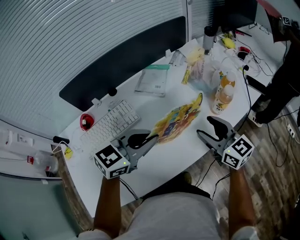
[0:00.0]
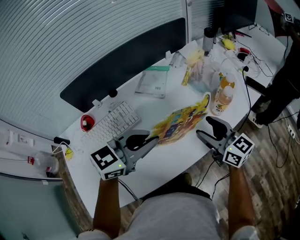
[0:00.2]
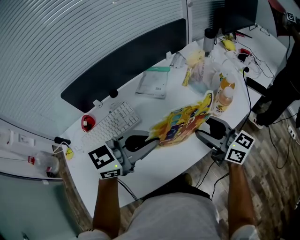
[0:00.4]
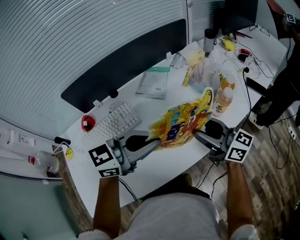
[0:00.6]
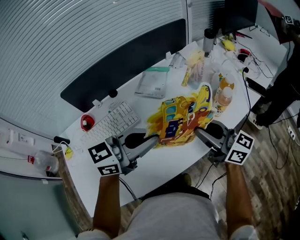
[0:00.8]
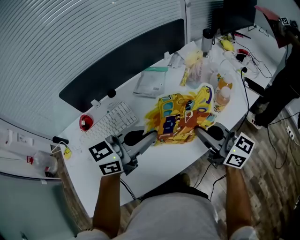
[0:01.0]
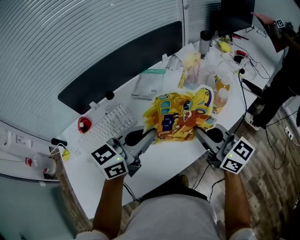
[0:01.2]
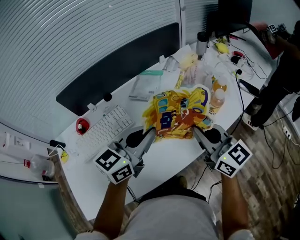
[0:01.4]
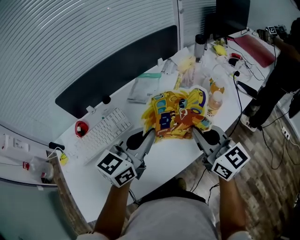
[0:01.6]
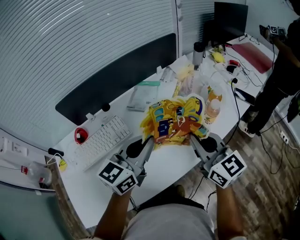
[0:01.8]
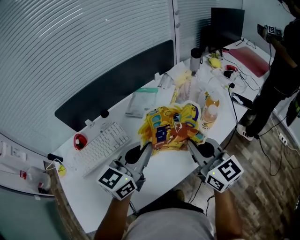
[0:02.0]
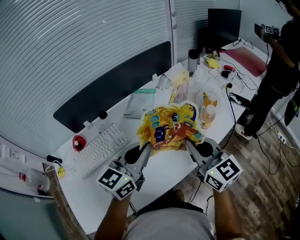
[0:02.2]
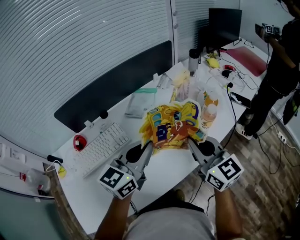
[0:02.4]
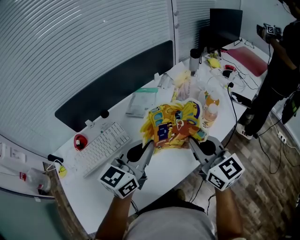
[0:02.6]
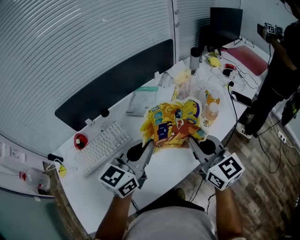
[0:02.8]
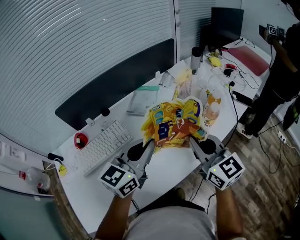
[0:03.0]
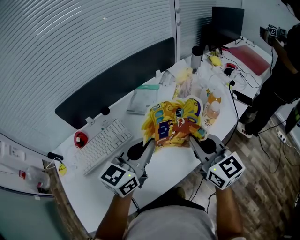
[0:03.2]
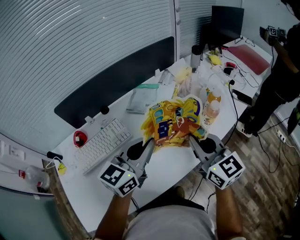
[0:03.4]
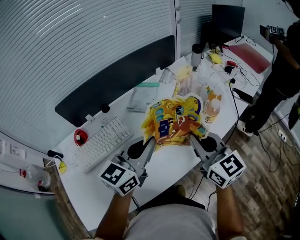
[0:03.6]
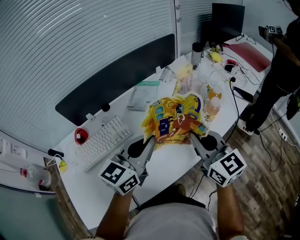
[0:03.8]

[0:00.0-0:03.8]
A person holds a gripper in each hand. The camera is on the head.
0:00.0 to 0:01.2: The right gripper shifts approximately 5 cm upward, and closes.
0:01.2 to 0:02.6: There are only small adjustments of the grippers.
0:02.6 to 0:03.8: Both grippers stay put.

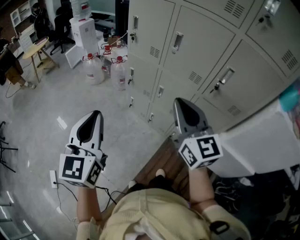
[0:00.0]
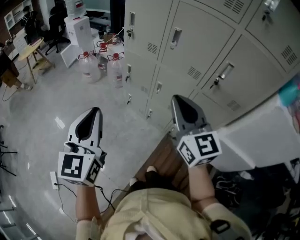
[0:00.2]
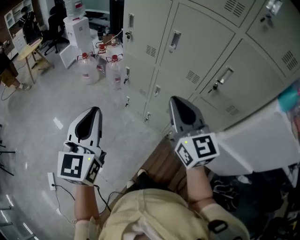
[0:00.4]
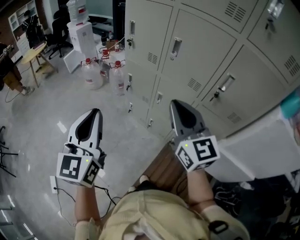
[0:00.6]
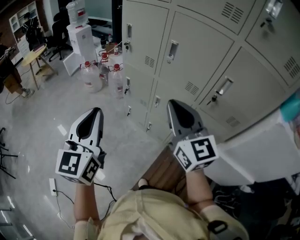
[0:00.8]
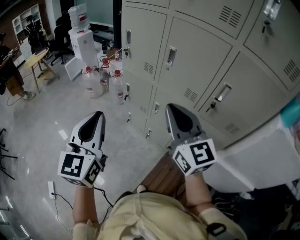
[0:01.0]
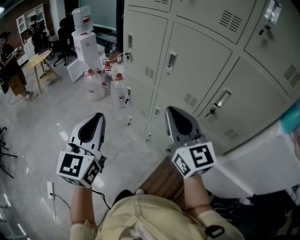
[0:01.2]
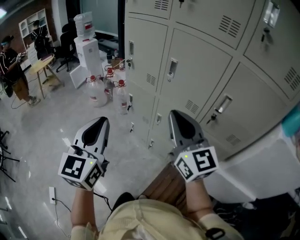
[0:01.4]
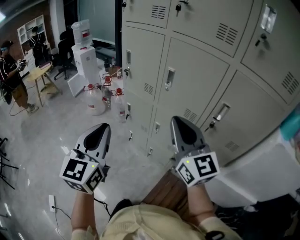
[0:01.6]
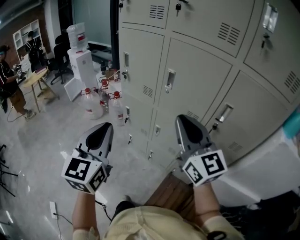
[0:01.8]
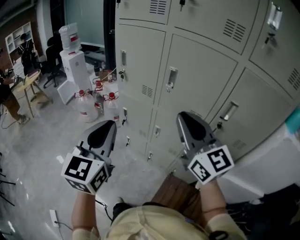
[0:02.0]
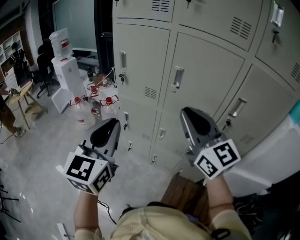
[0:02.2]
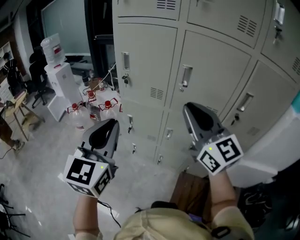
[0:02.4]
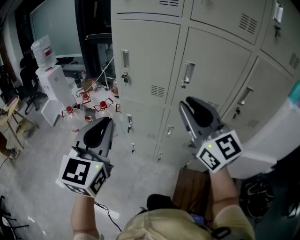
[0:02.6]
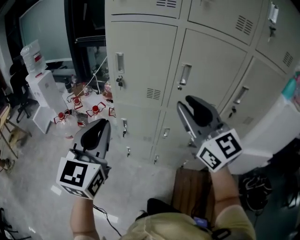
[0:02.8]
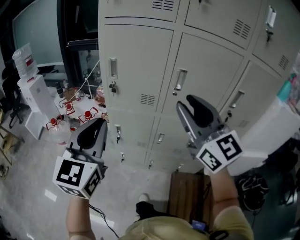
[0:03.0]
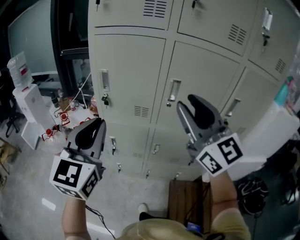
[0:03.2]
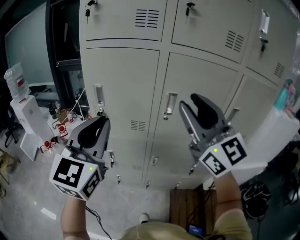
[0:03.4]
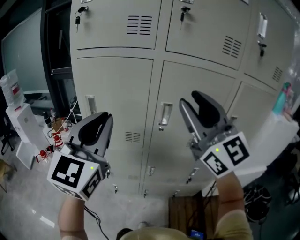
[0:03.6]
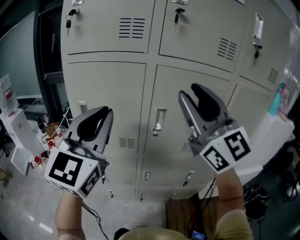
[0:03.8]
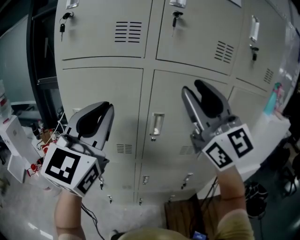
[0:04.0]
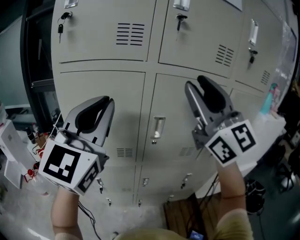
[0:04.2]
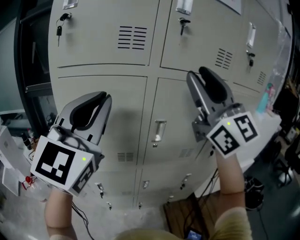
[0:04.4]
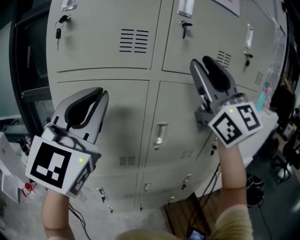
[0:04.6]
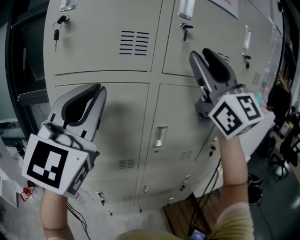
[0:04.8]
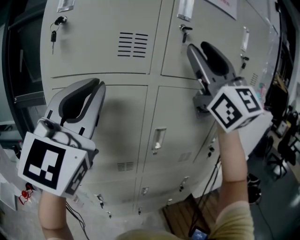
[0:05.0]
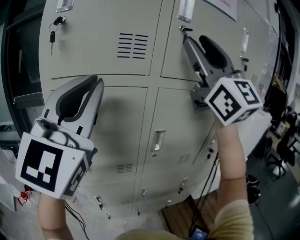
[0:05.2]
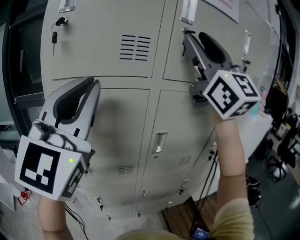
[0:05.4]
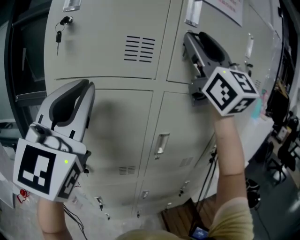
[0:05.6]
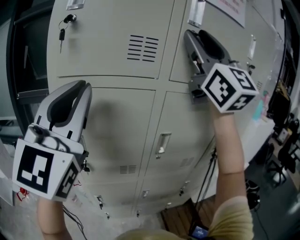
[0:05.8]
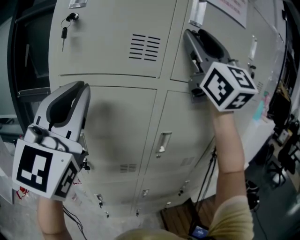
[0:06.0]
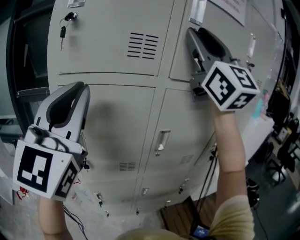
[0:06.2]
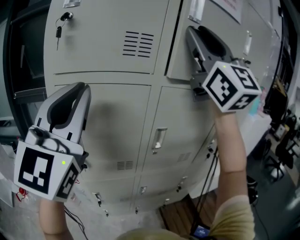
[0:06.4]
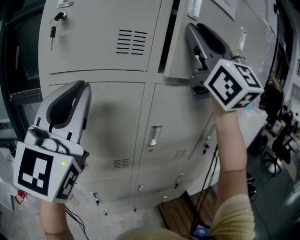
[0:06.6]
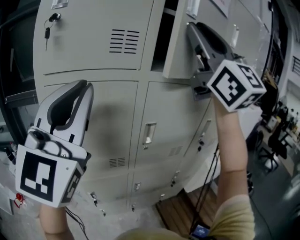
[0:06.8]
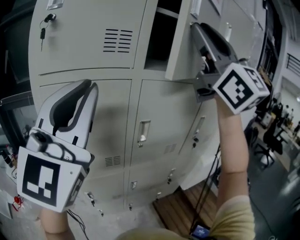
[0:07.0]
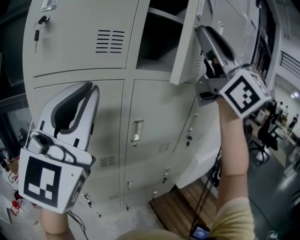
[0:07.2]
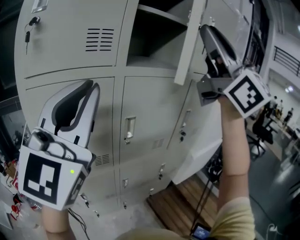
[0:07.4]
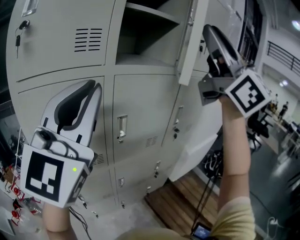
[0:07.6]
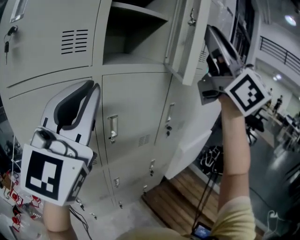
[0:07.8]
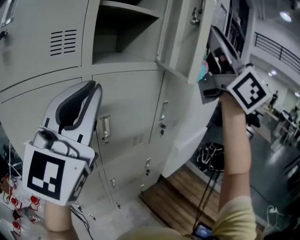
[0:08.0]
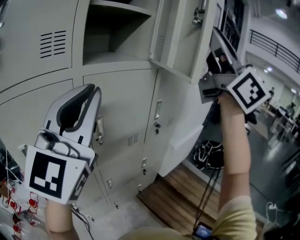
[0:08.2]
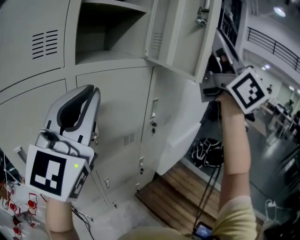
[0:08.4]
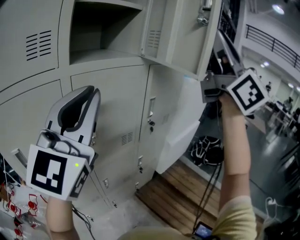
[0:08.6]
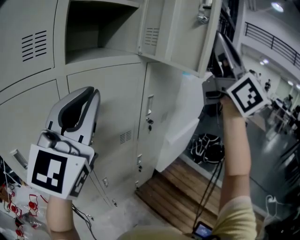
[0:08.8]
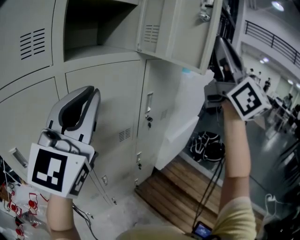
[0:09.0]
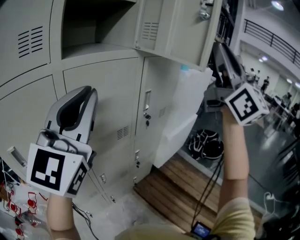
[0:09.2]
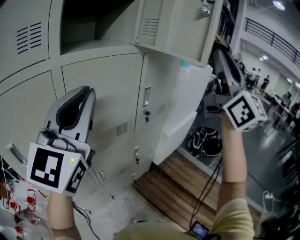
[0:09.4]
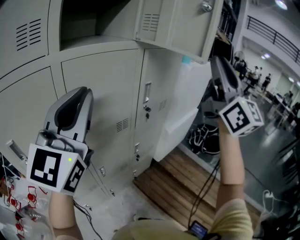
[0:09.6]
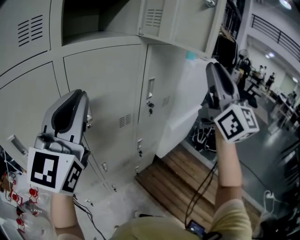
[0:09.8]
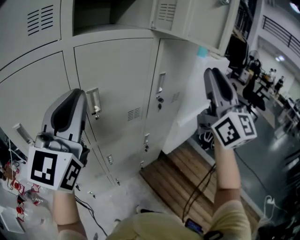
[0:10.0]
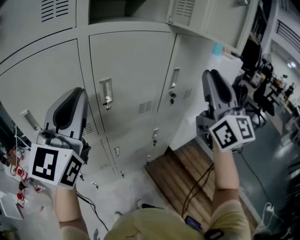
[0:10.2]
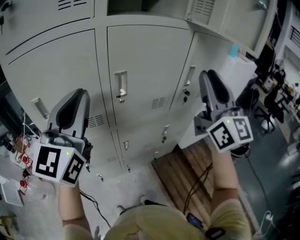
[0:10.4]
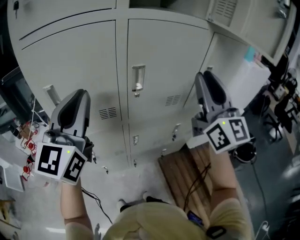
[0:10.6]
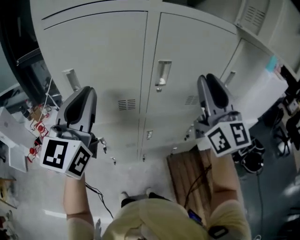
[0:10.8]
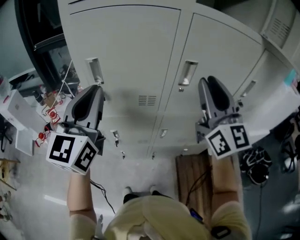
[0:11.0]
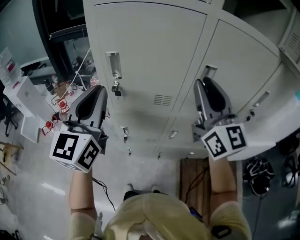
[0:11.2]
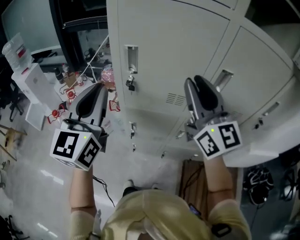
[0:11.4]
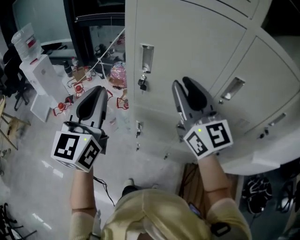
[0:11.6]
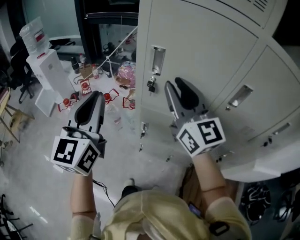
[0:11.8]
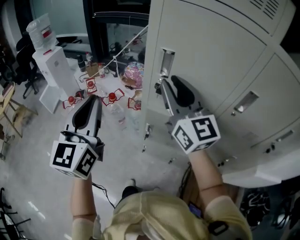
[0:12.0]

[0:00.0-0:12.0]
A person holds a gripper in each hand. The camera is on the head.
0:00.0 to 0:01.6: The left gripper moves forward and to the right, roughly 15 cm, while the right gripper heads forward, covering some 10 cm.
0:01.6 to 0:03.0: The left gripper moves forward and to the left, roughly 25 cm, and turns by about 30 degrees. Meanwhile the right gripper goes about 15 cm to the left and forward, changes its angle by approximately 20 degrees, and opens its fingers.
0:03.0 to 0:04.4: The right gripper goes approximately 25 cm upward and forward, and changes its angle by some 30 degrees, while the left gripper travels upward, forward and to the right by about 25 cm, and rotates approximately 30 degrees.
0:04.4 to 0:06.0: The left gripper goes roughly 5 cm to the left. The right gripper travels upward and forward by about 15 cm.
0:06.0 to 0:07.6: The left gripper is displaced to the right by approximately 15 cm, and turns by approximately 20 degrees; the right gripper heads backward and to the right, covering roughly 20 cm.
0:07.6 to 0:09.0: The left gripper shifts approximately 10 cm to the right and forward. The right gripper travels to the right by approximately 20 cm, and rotates roughly 20 degrees.
0:09.0 to 0:10.4: The right gripper heads downward and to the left, covering roughly 25 cm, and turns by about 20 degrees. Meanwhile the left gripper heads to the left and downward, covering roughly 15 cm, and turns by approximately 20 degrees.
0:10.4 to 0:12.0: The right gripper ends up about 50 cm from where it was, and changes its angle by about 50 degrees. The left gripper moves approximately 35 cm, and swivels some 50 degrees.

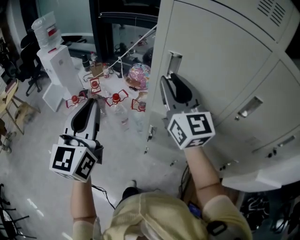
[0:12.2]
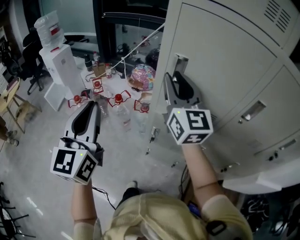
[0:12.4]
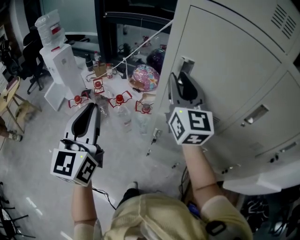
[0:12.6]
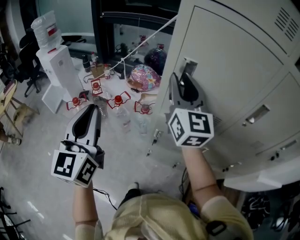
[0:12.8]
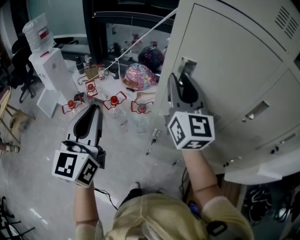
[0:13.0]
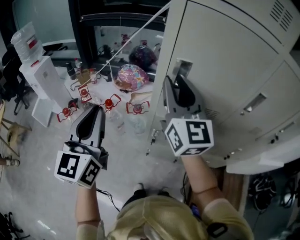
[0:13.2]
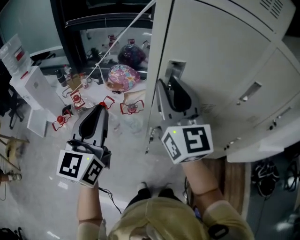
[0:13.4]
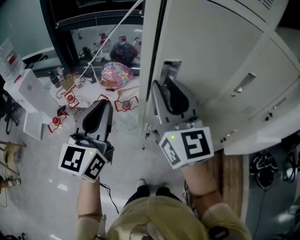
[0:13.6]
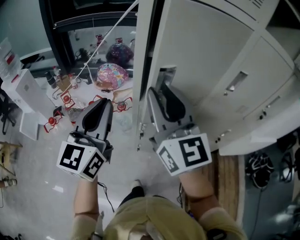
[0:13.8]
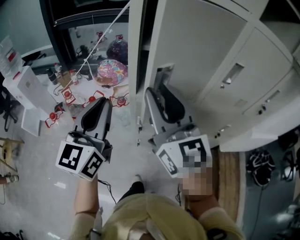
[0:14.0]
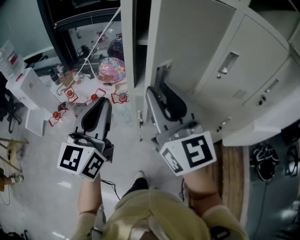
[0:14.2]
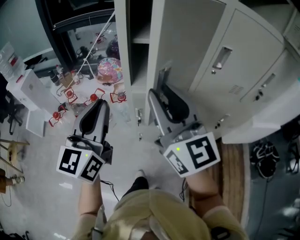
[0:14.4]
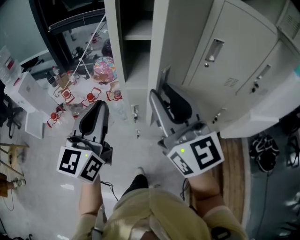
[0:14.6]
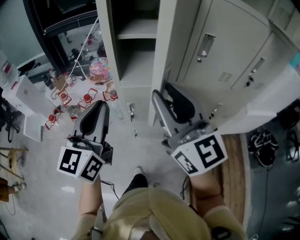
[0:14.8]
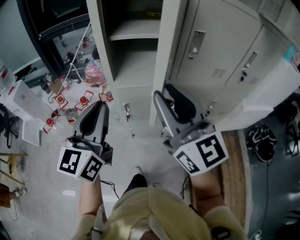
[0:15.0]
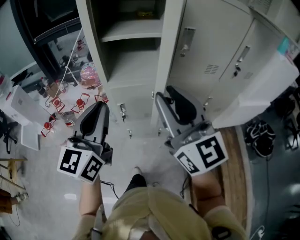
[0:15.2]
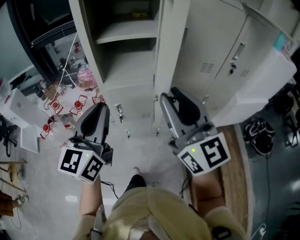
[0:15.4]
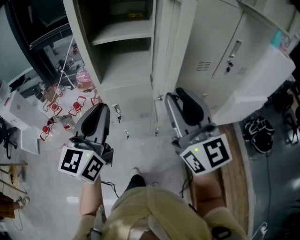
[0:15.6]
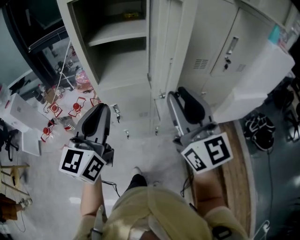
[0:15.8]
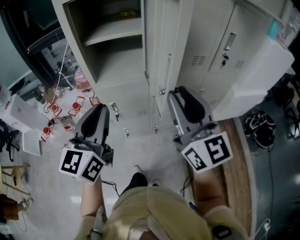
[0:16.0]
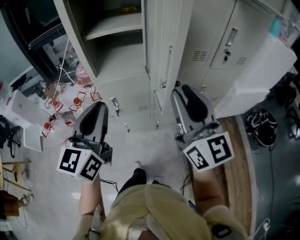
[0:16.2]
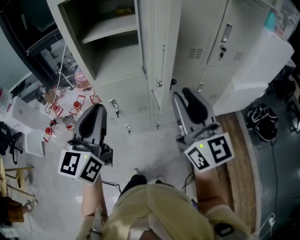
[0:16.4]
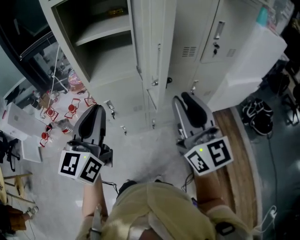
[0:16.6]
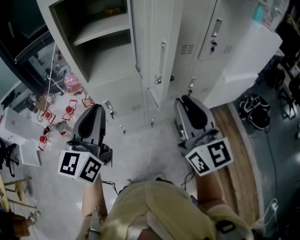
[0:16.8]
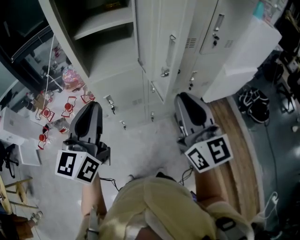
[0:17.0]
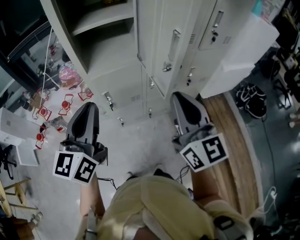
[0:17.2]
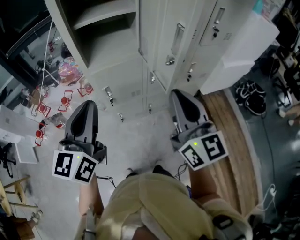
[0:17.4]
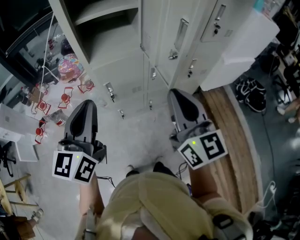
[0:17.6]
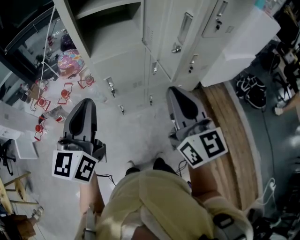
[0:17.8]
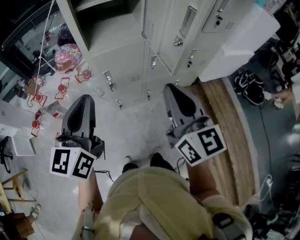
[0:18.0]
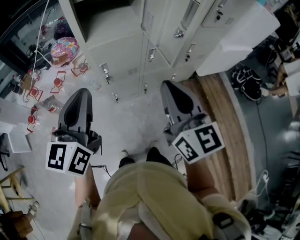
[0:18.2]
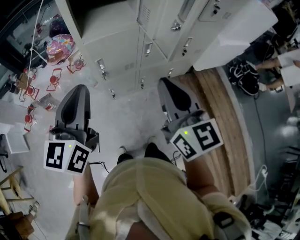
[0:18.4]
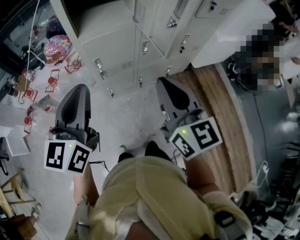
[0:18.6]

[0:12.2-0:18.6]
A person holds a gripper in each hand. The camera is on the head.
0:12.2 to 0:13.8: The left gripper travels forward by roughly 5 cm, and rotates some 30 degrees, while the right gripper is displaced backward by some 5 cm.
0:13.8 to 0:15.4: The grippers both shift to the right and backward by roughly 20 cm.
0:15.4 to 0:17.0: The right gripper moves to the right and downward, about 10 cm.
0:17.0 to 0:18.6: The right gripper is displaced to the left, backward and downward by approximately 10 cm, while the left gripper moves backward, roughly 5 cm.

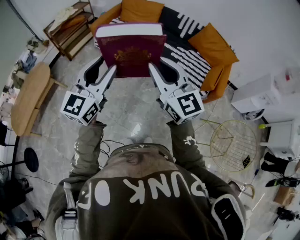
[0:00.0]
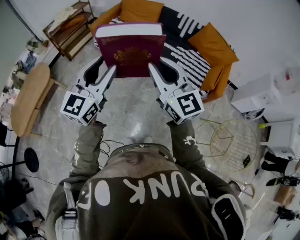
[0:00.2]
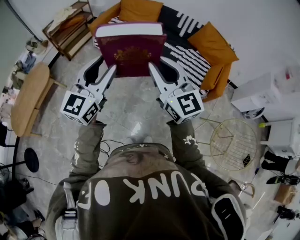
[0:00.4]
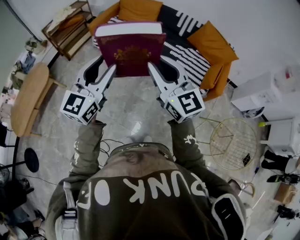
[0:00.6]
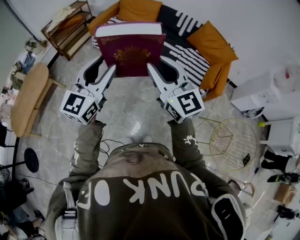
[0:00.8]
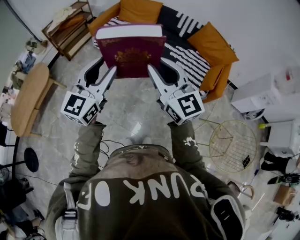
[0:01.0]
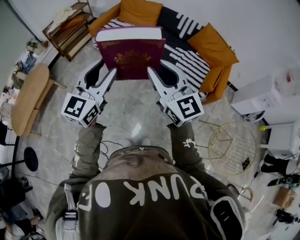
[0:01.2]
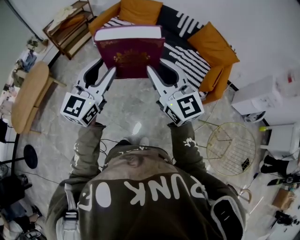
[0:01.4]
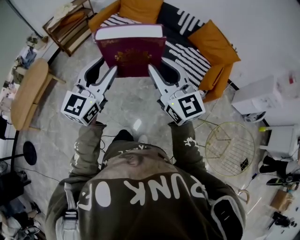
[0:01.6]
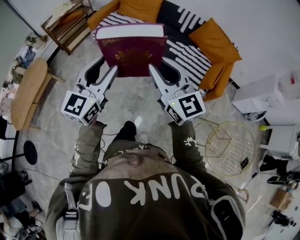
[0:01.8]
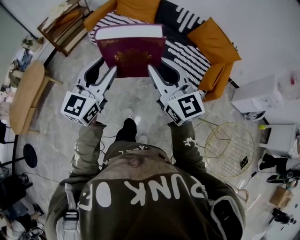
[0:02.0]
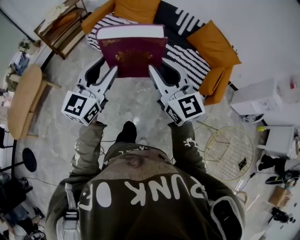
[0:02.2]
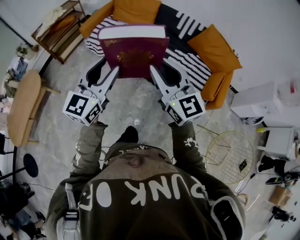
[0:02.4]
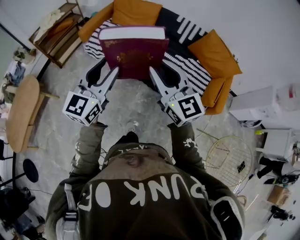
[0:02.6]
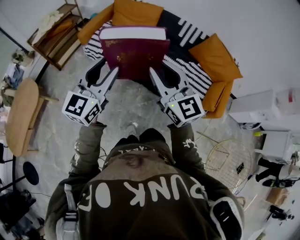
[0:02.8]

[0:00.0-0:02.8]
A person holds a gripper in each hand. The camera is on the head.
0:00.0 to 0:01.4: The left gripper travels to the right by about 5 cm.
0:01.4 to 0:02.8: The grippers both shift forward by about 25 cm.
